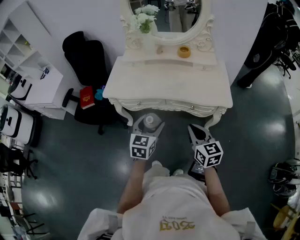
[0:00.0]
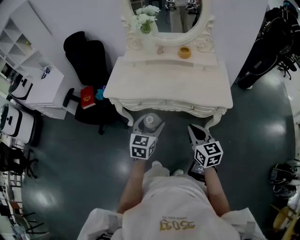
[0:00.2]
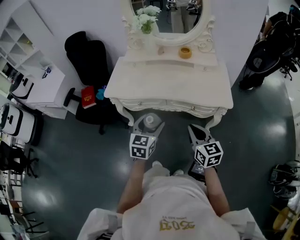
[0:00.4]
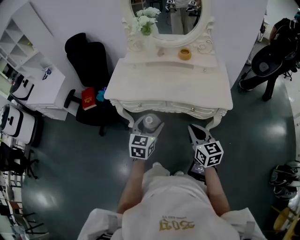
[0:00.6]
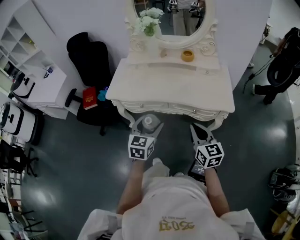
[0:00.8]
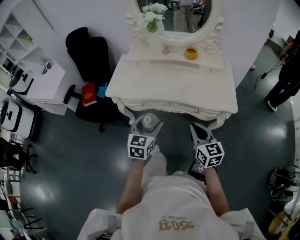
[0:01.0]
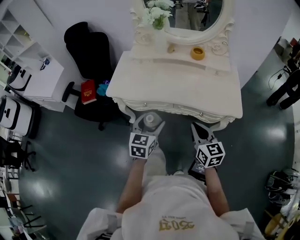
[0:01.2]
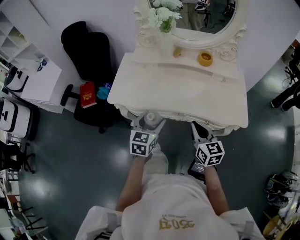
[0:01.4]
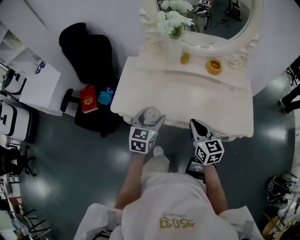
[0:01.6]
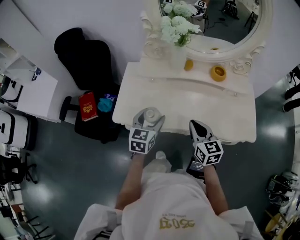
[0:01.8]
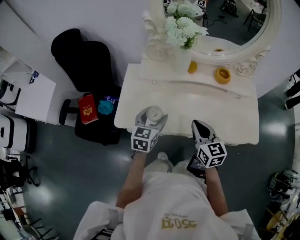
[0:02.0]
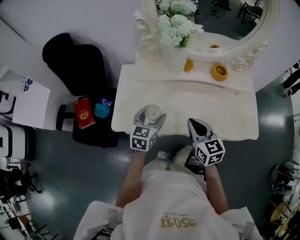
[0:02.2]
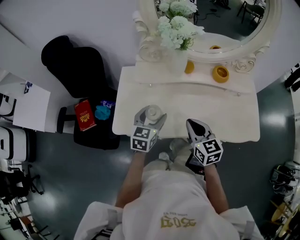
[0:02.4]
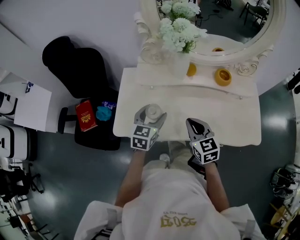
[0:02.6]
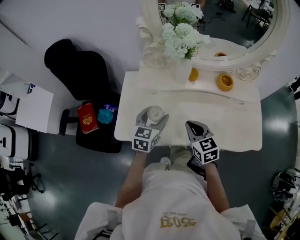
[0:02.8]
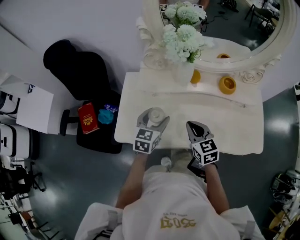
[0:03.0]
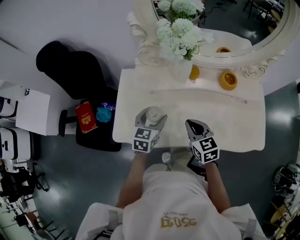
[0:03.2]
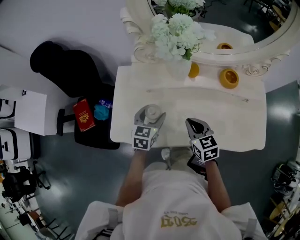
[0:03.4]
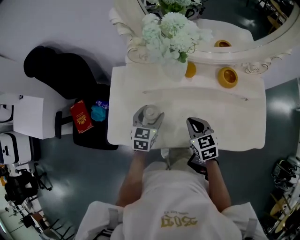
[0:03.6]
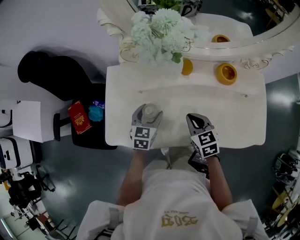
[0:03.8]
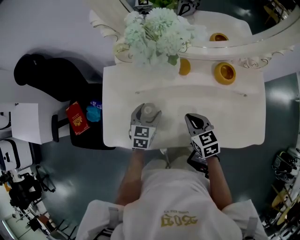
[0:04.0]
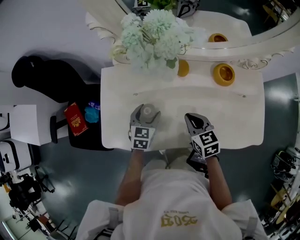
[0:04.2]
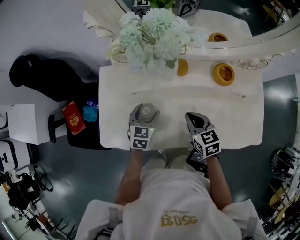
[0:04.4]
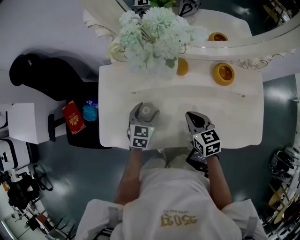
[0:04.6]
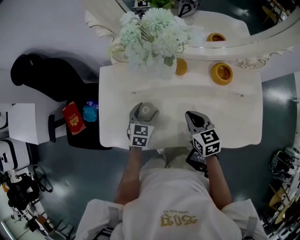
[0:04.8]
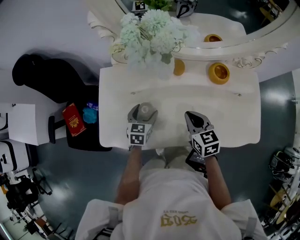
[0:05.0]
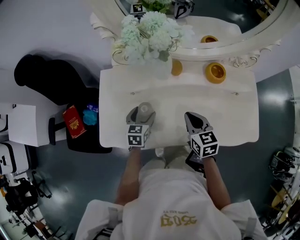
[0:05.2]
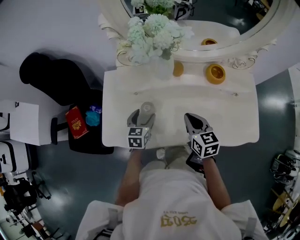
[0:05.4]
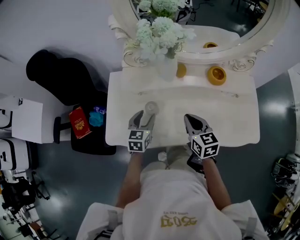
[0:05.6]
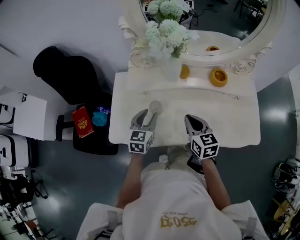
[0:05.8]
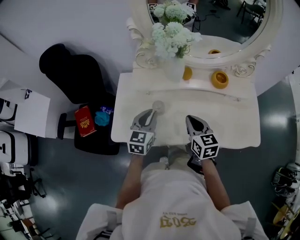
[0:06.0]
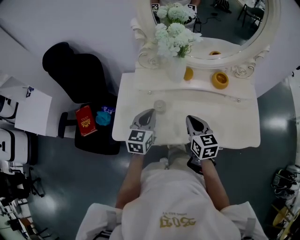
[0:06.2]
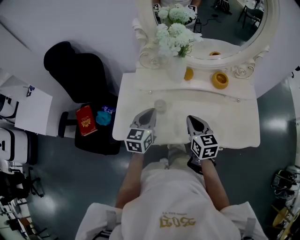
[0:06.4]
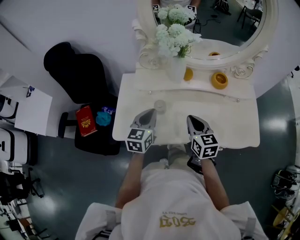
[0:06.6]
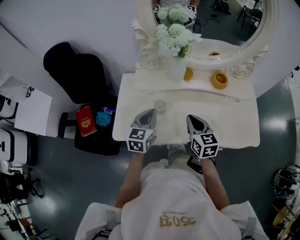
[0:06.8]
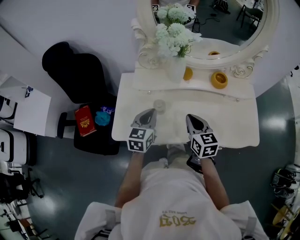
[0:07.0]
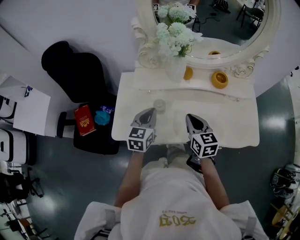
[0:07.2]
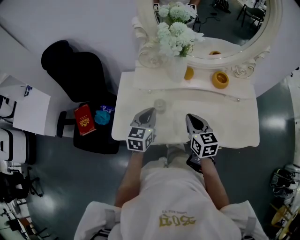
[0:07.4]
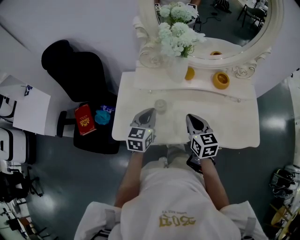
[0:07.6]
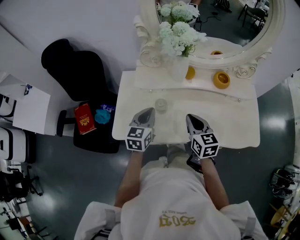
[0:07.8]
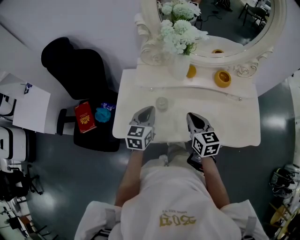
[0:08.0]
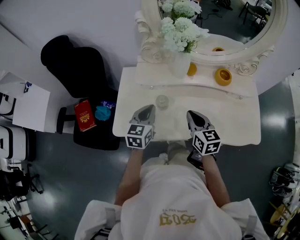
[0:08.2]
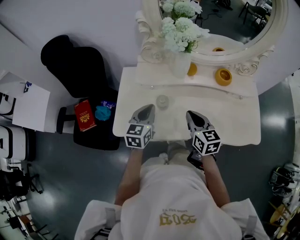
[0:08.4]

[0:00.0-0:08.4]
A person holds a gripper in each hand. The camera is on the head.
0:00.0 to 0:01.4: The two grippers go about 15 cm forward and to the left.
0:01.4 to 0:02.8: The left gripper is displaced forward by approximately 25 cm. The right gripper is displaced forward and to the left by some 25 cm.
0:02.8 to 0:04.2: The left gripper travels downward and forward by some 15 cm. The right gripper is displaced downward, forward and to the right by about 10 cm.
0:04.2 to 0:05.6: The left gripper changes place by roughly 5 cm. Meanwhile the right gripper heads upward, covering about 5 cm.
0:05.6 to 0:07.0: The right gripper ends up roughly 5 cm from where it was. The left gripper goes roughly 10 cm upward, and closes up.
0:07.0 to 0:08.4: The grippers make only small movements.

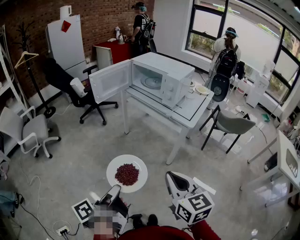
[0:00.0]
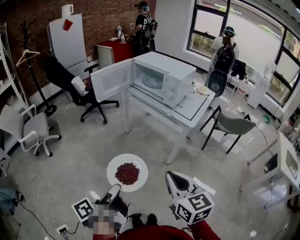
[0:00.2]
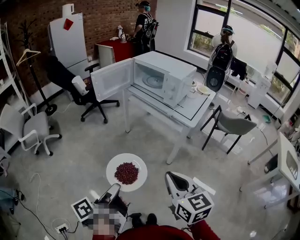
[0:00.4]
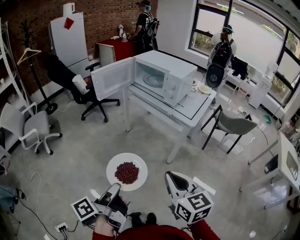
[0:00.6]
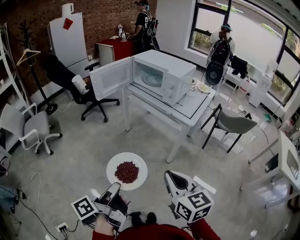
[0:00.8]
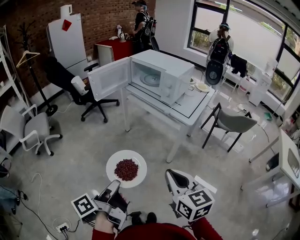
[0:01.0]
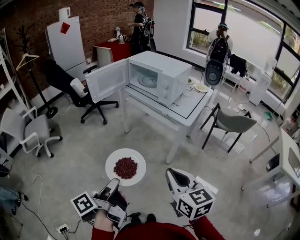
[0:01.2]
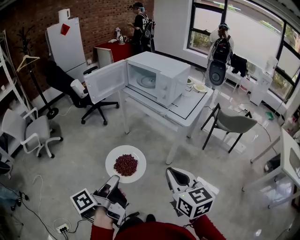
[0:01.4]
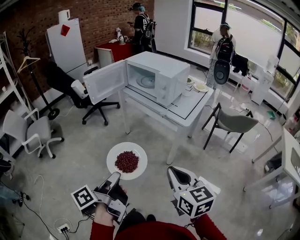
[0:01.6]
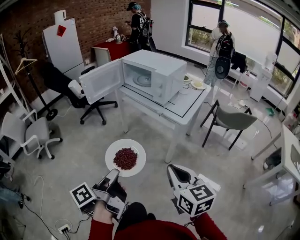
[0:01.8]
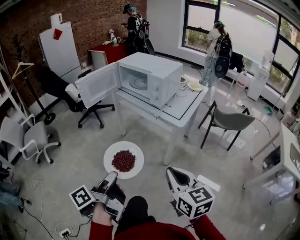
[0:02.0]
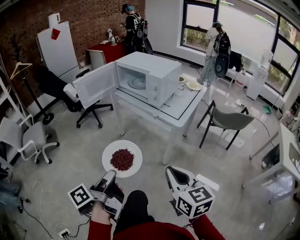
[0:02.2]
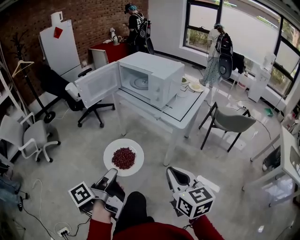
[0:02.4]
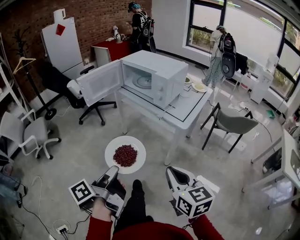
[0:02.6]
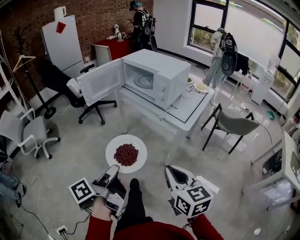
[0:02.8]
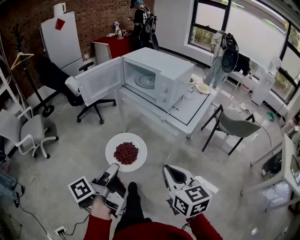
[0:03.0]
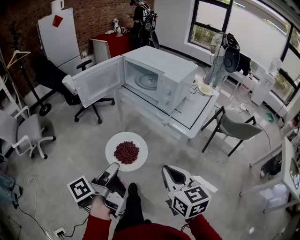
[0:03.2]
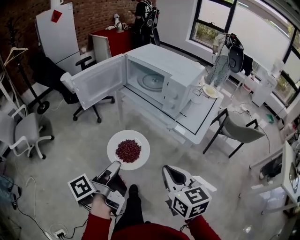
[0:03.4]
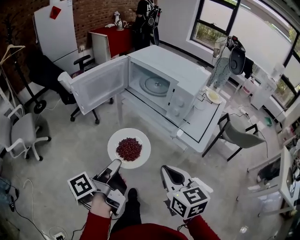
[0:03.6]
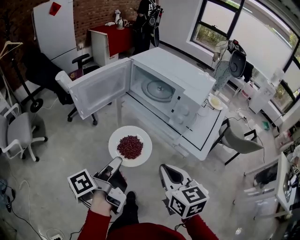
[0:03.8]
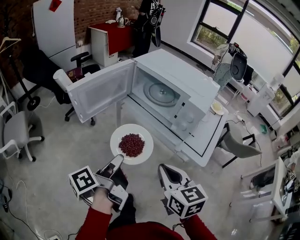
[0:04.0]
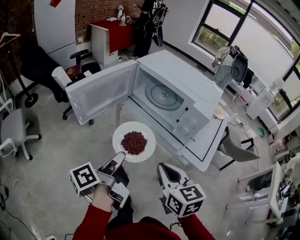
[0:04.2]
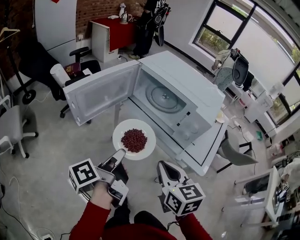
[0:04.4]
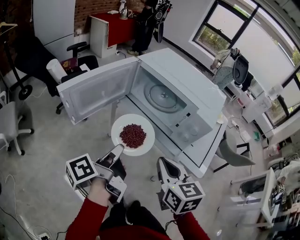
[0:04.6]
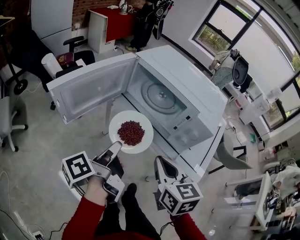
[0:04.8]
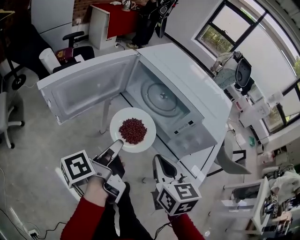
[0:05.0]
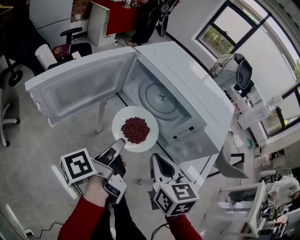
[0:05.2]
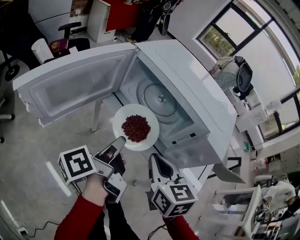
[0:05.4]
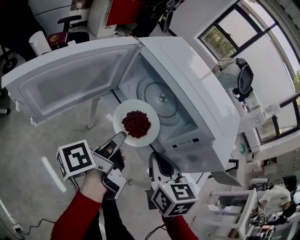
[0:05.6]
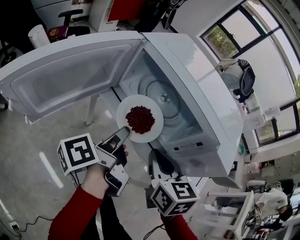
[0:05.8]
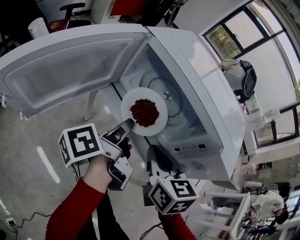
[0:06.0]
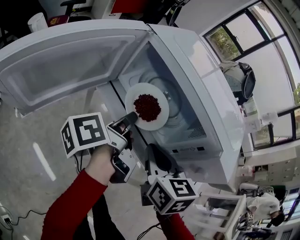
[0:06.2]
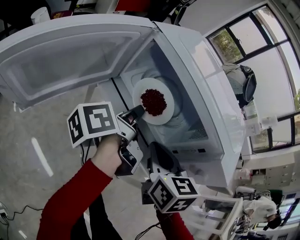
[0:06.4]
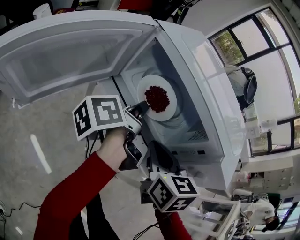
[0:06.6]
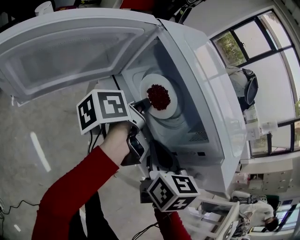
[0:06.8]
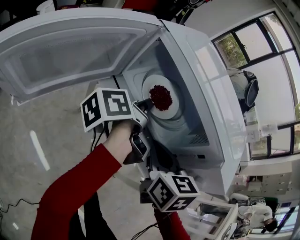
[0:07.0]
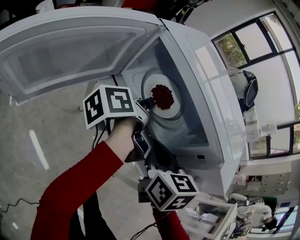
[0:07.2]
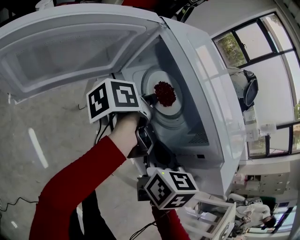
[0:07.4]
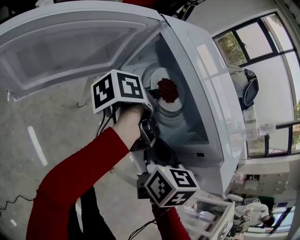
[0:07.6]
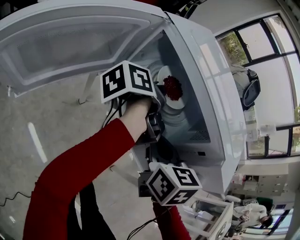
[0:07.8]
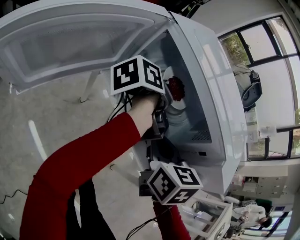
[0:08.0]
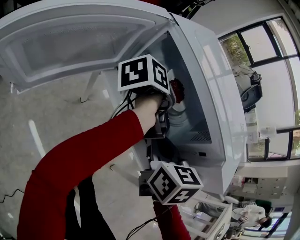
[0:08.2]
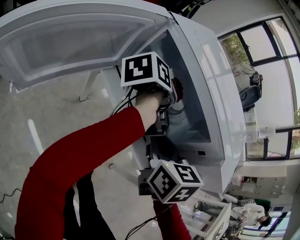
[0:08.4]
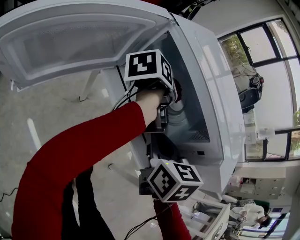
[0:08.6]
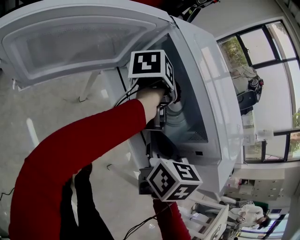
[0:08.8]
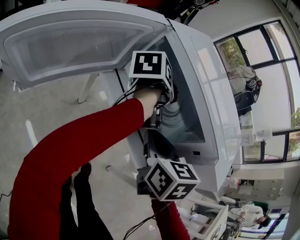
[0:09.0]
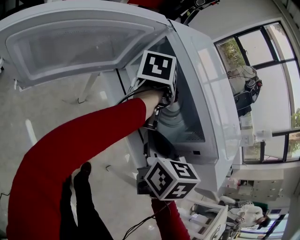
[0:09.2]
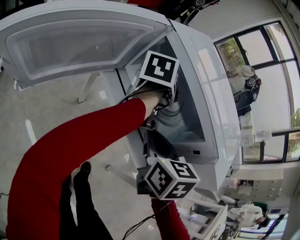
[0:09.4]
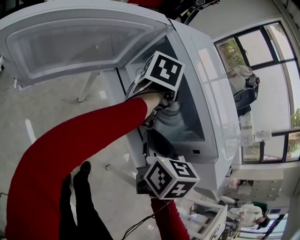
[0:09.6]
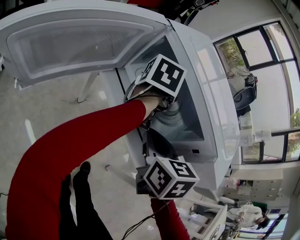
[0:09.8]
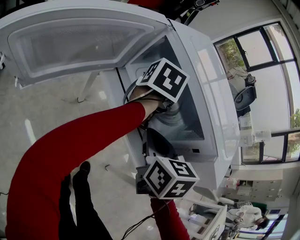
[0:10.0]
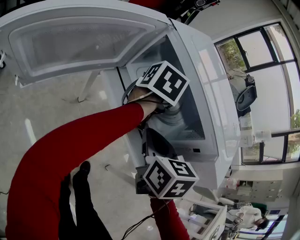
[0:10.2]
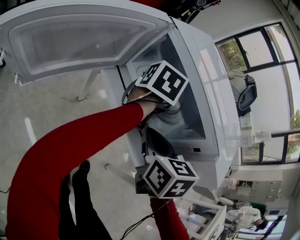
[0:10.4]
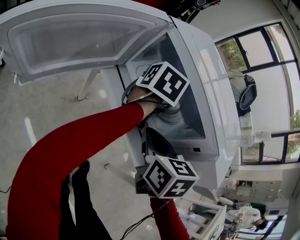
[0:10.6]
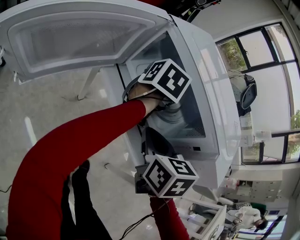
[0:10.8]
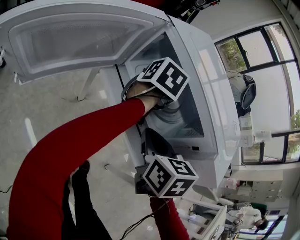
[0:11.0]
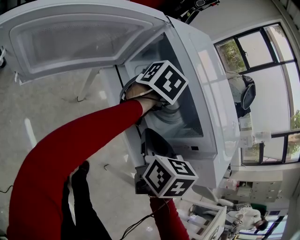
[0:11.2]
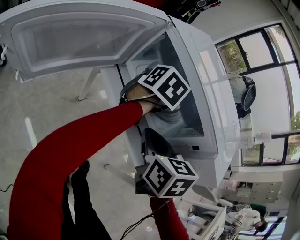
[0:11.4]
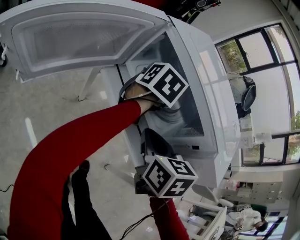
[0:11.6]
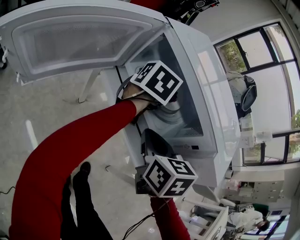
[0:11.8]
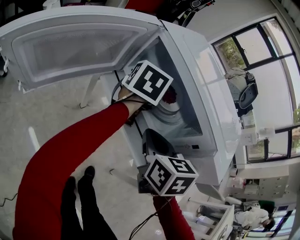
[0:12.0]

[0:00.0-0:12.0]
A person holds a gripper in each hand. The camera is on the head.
0:00.0 to 0:01.6: The two grippers go roughly 5 cm to the right.
0:01.6 to 0:03.0: The two grippers go approximately 10 cm forward.
0:03.0 to 0:04.4: The left gripper moves forward, approximately 25 cm. The right gripper moves forward and to the left, about 25 cm.
0:04.4 to 0:06.0: Both grippers move forward, about 20 cm.
0:06.0 to 0:07.6: The left gripper is displaced forward by roughly 10 cm.
0:07.6 to 0:09.0: The left gripper changes its angle by some 30 degrees.
0:09.0 to 0:10.4: The left gripper rotates approximately 40 degrees.
0:10.4 to 0:12.0: The grippers move only a little.

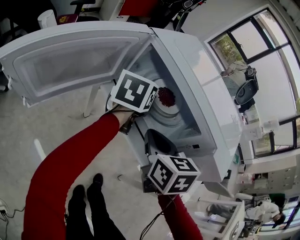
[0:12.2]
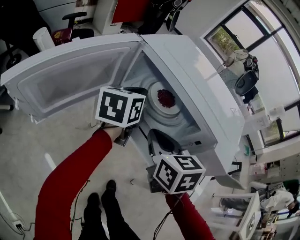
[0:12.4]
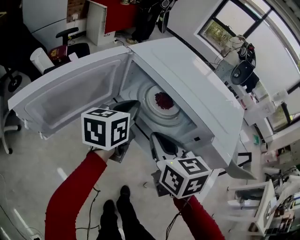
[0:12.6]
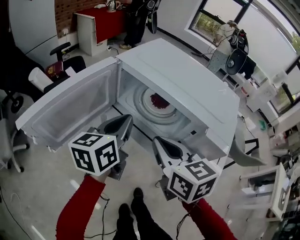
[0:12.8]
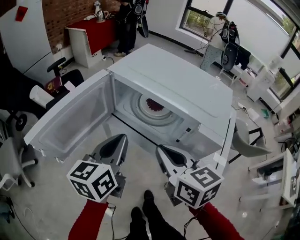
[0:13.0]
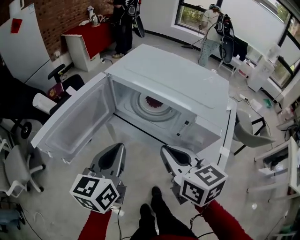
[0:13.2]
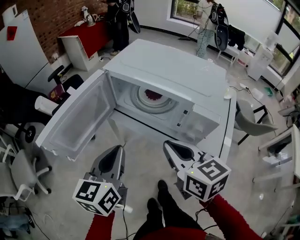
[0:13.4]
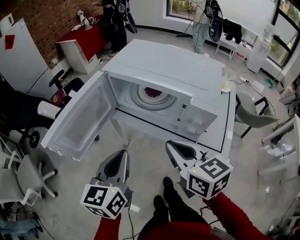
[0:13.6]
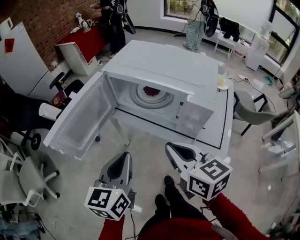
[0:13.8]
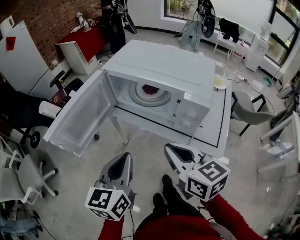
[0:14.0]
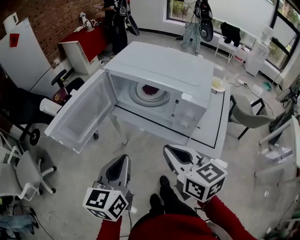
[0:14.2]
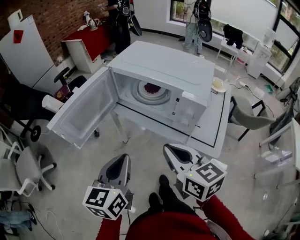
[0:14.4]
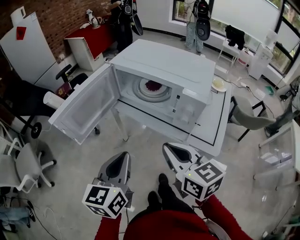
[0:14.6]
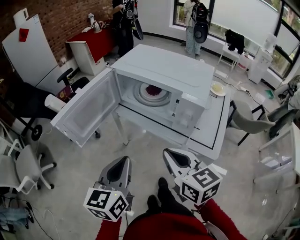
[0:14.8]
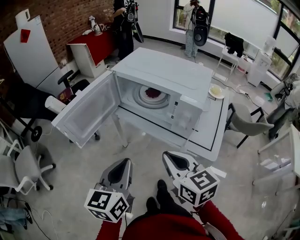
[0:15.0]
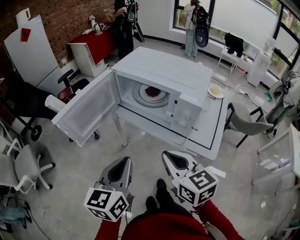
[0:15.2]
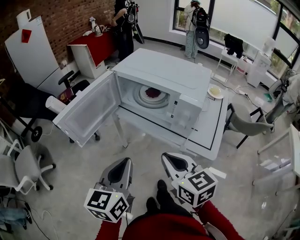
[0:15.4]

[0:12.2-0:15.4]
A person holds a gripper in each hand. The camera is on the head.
0:12.2 to 0:13.8: The right gripper travels backward and upward by about 20 cm, and turns by approximately 20 degrees. The left gripper shifts roughly 30 cm backward.
0:13.8 to 0:15.4: Both grippers travel together backward, approximately 5 cm.
